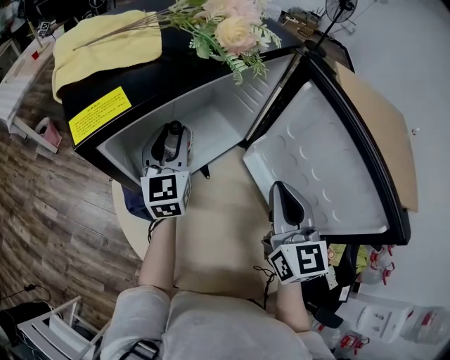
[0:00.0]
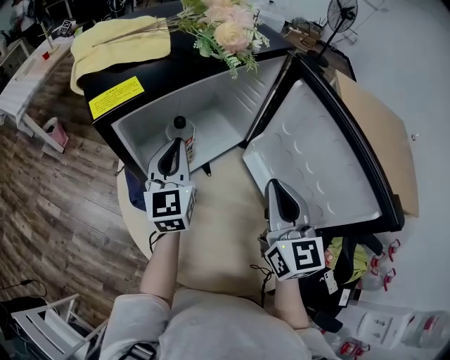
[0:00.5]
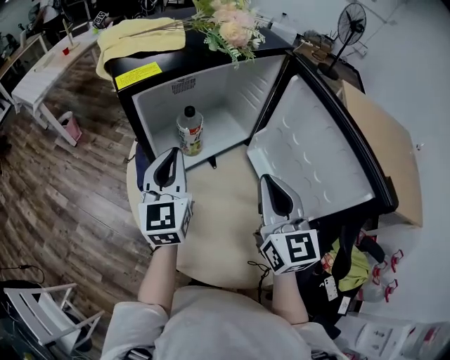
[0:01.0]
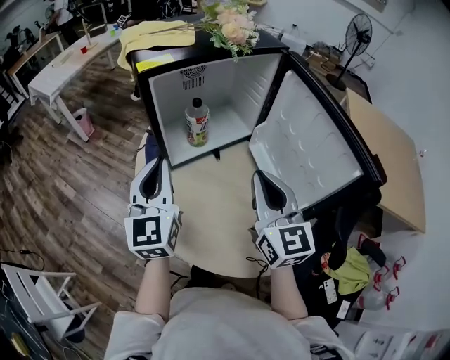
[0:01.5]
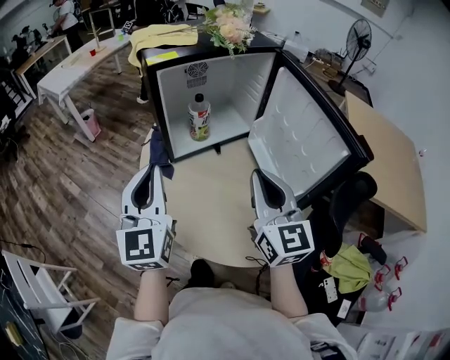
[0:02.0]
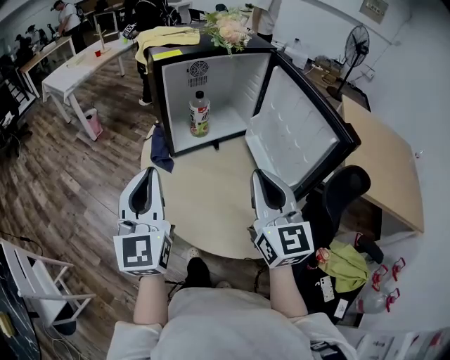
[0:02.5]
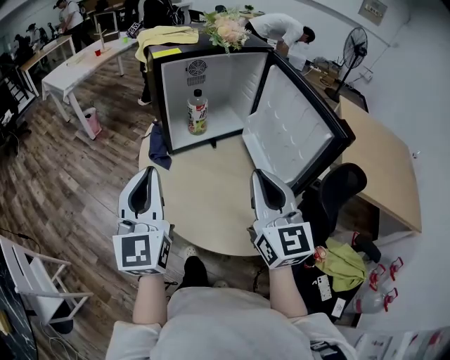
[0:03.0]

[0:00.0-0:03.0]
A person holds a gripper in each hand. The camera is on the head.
0:00.0 to 0:01.5: The right gripper shifts about 10 cm backward. Meanwhile the left gripper shifts about 25 cm backward, and closes its fingers.
0:01.5 to 0:03.0: The two grippers go approximately 15 cm backward.

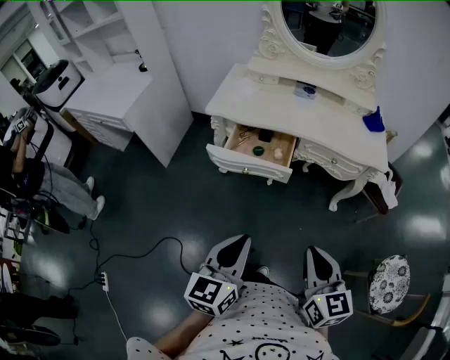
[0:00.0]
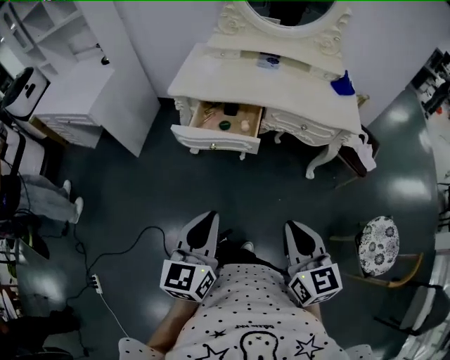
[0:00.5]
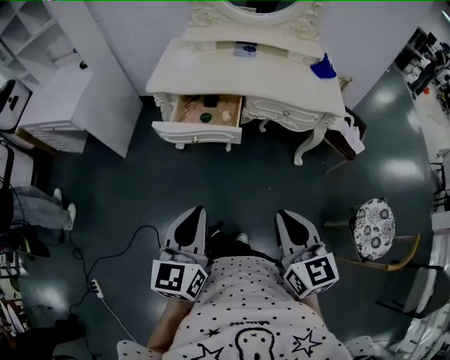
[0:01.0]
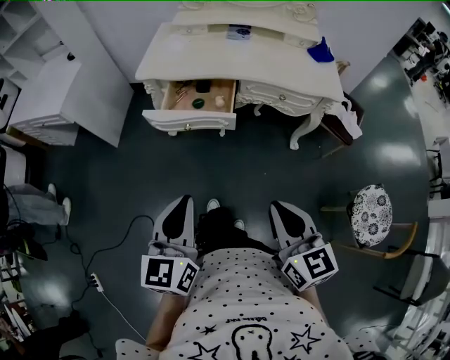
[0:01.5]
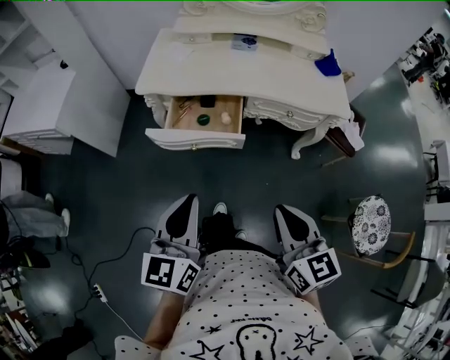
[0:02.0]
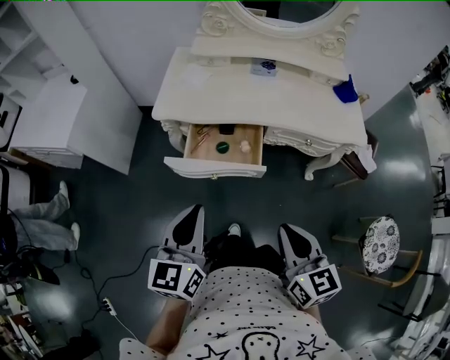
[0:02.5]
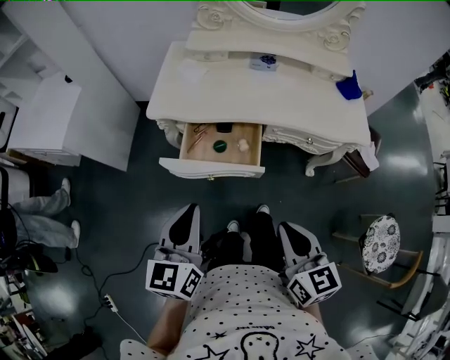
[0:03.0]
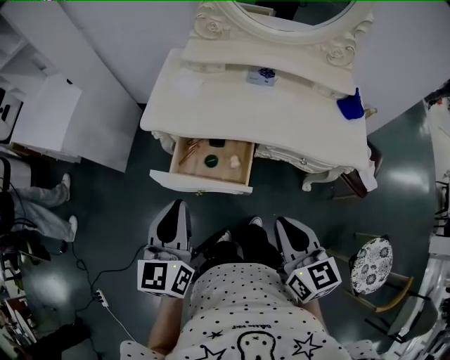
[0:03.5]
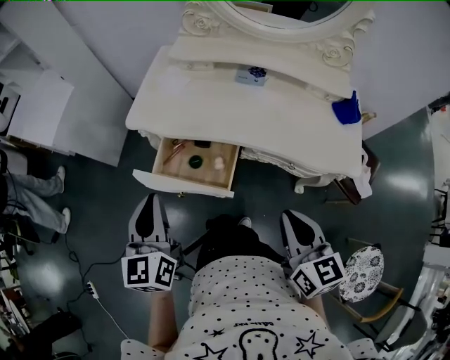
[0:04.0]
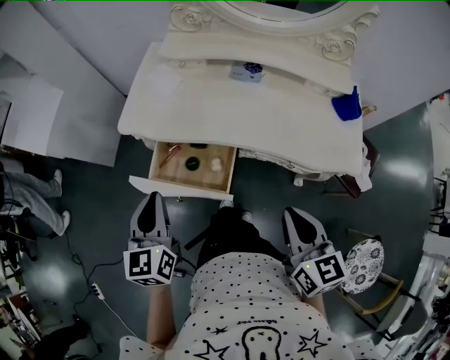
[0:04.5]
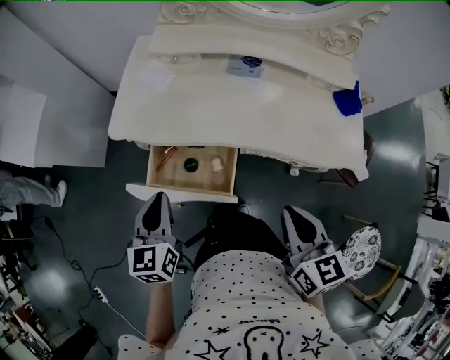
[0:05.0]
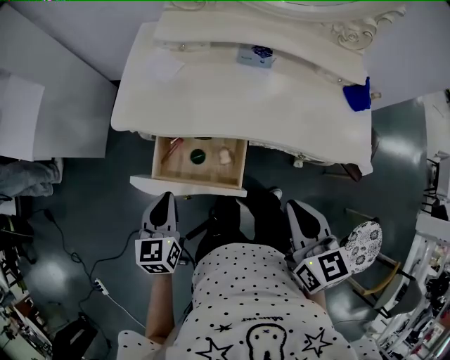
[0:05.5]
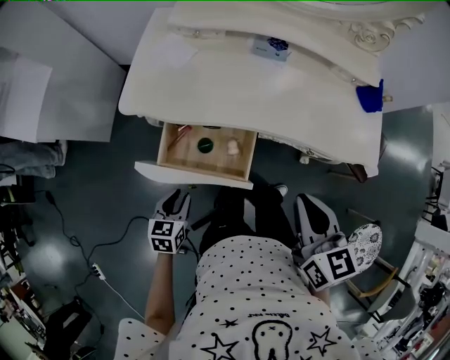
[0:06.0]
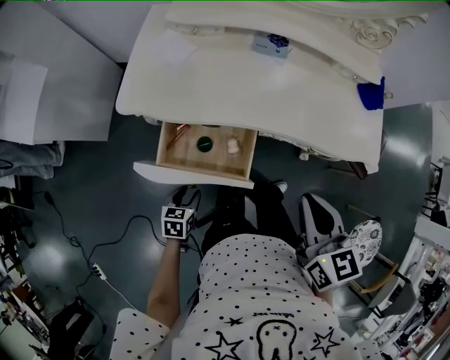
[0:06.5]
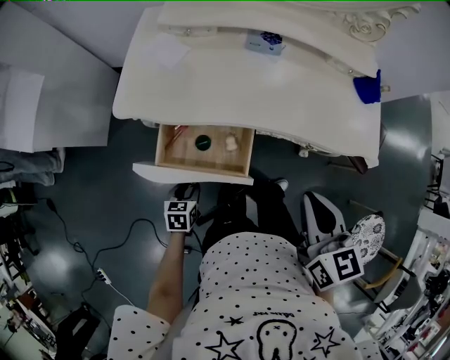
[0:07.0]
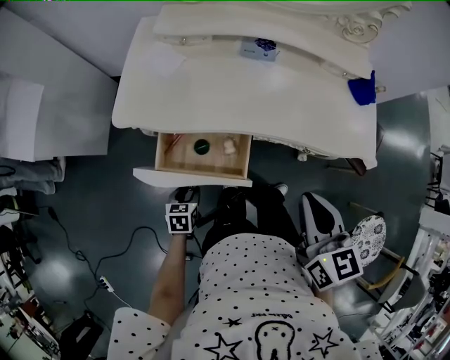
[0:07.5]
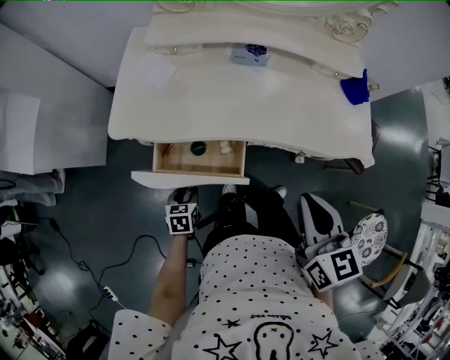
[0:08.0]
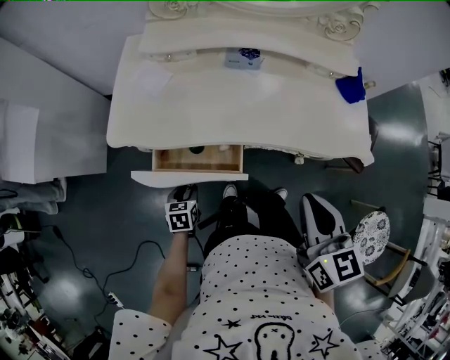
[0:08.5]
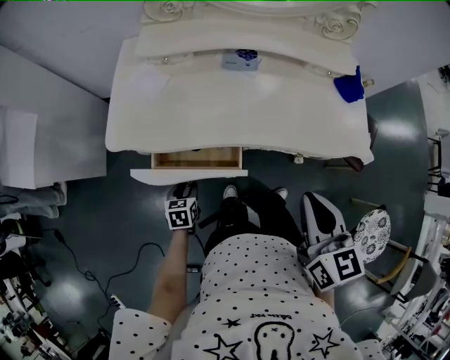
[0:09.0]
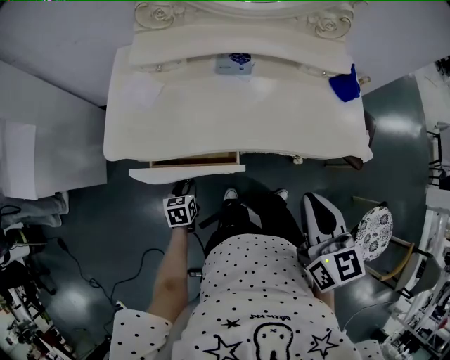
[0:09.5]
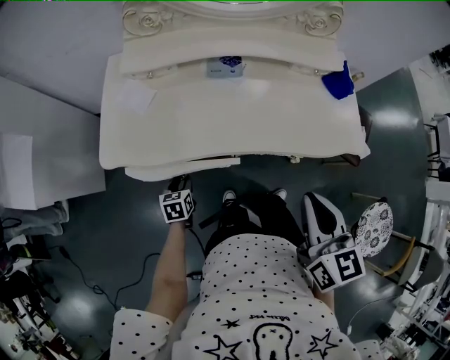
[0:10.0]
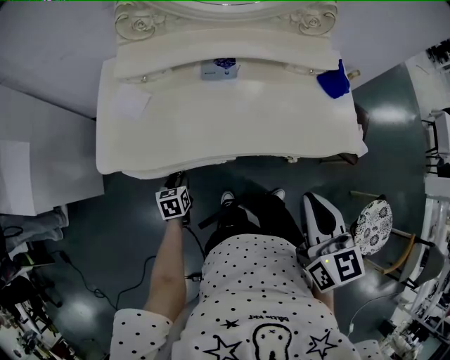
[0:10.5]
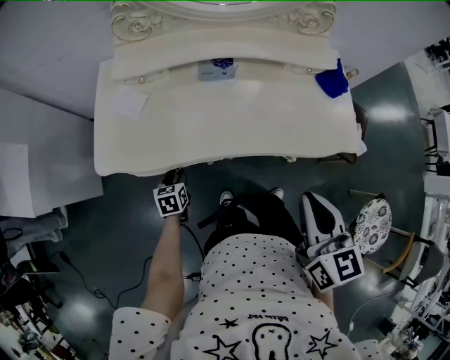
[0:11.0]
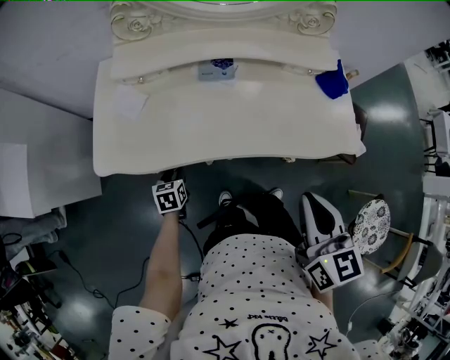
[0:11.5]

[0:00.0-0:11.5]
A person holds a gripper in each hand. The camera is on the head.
0:00.0 to 0:02.0: The left gripper travels forward by some 10 cm. The right gripper shifts roughly 5 cm forward.
0:02.0 to 0:04.0: The left gripper goes about 20 cm forward, and swivels some 20 degrees, while the right gripper goes some 25 cm forward and to the right.
0:04.0 to 0:06.0: The left gripper travels downward by about 25 cm, angles its fingers downward, by about 30 degrees, and opens its fingers, while the right gripper goes approximately 10 cm forward.
0:06.0 to 0:07.5: The left gripper goes approximately 10 cm downward.
0:07.5 to 0:09.5: The left gripper is displaced forward by roughly 10 cm.
0:09.5 to 0:11.5: The left gripper shifts approximately 10 cm forward.

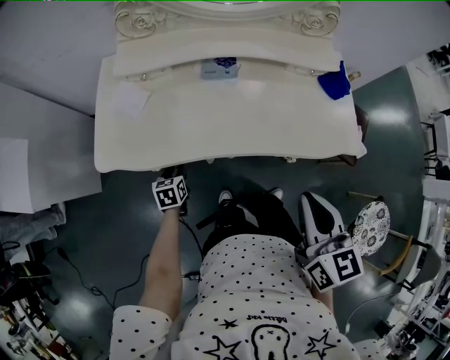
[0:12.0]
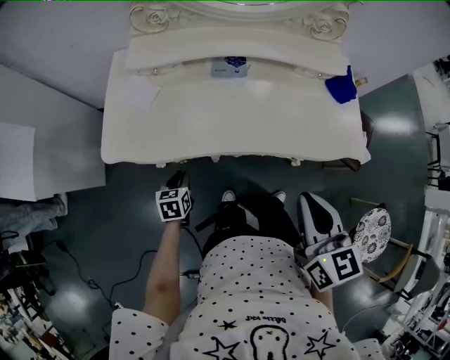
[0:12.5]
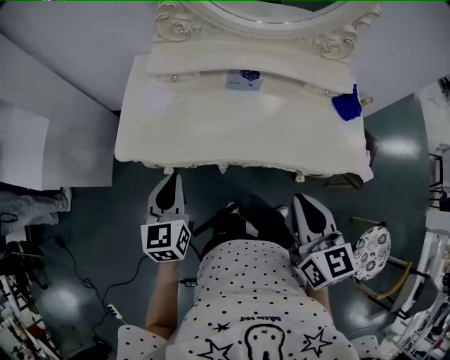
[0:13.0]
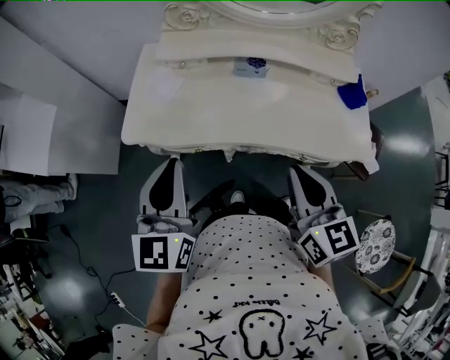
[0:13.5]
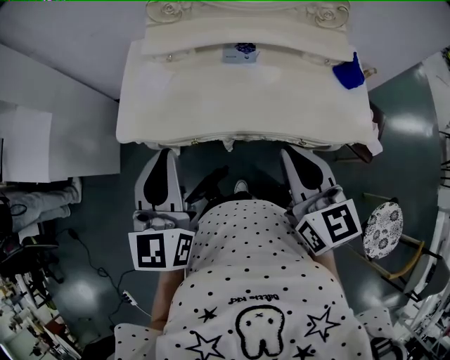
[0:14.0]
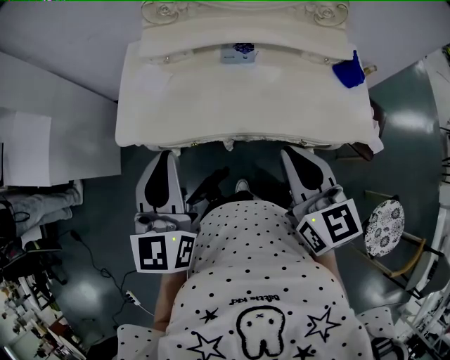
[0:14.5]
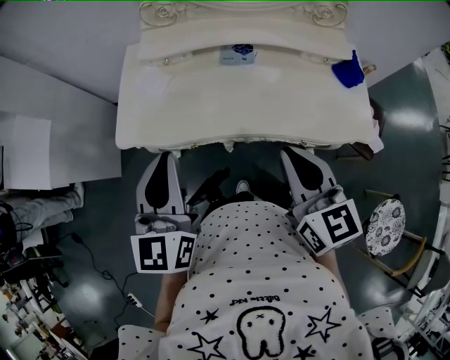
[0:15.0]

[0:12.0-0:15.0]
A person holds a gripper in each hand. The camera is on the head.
0:12.0 to 0:13.5: The left gripper heads upward, covering roughly 40 cm, tips its fingers upward by some 40 degrees, and closes up, while the right gripper moves to the left, about 5 cm.
0:13.5 to 0:15.0: The grippers move only a little.

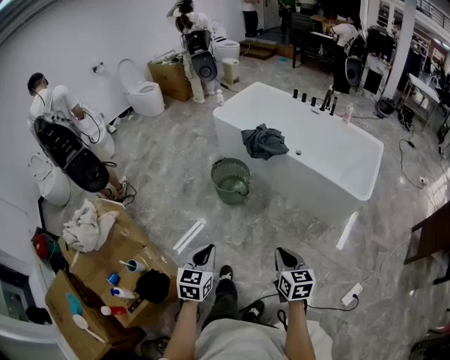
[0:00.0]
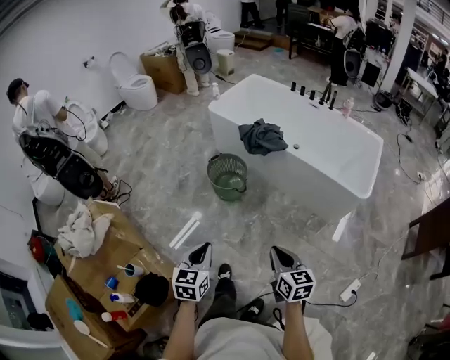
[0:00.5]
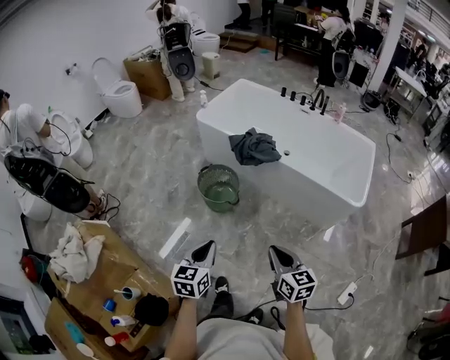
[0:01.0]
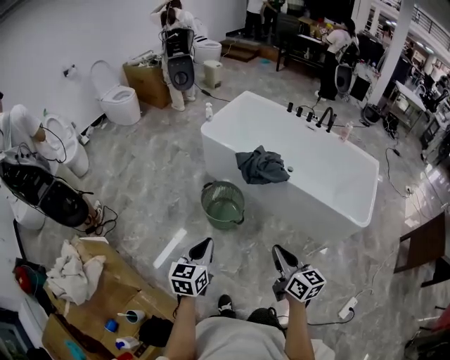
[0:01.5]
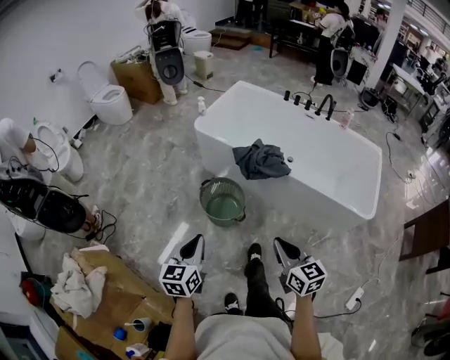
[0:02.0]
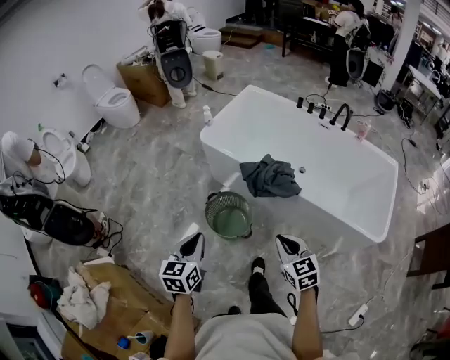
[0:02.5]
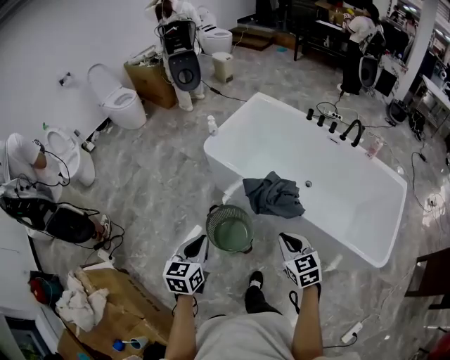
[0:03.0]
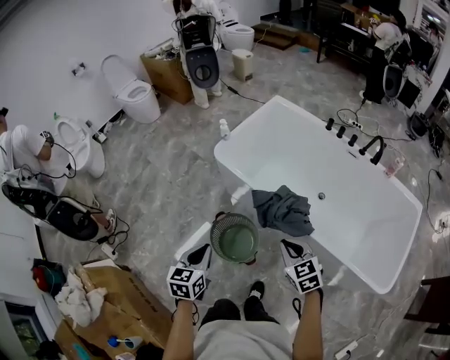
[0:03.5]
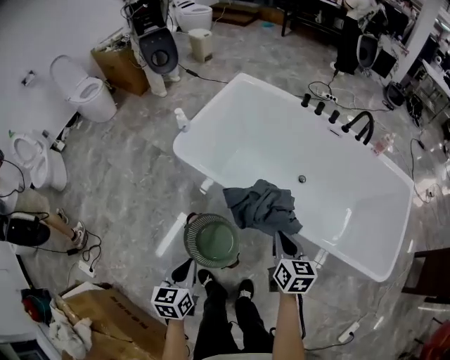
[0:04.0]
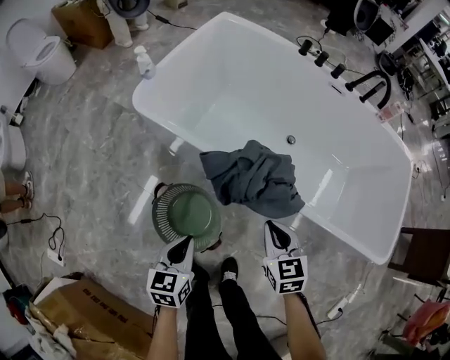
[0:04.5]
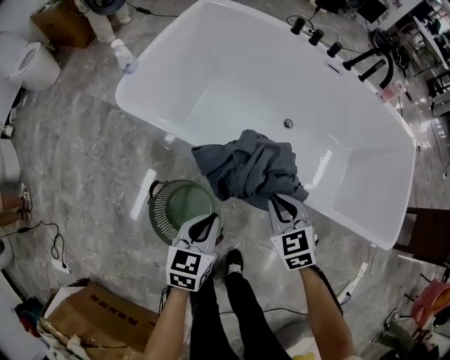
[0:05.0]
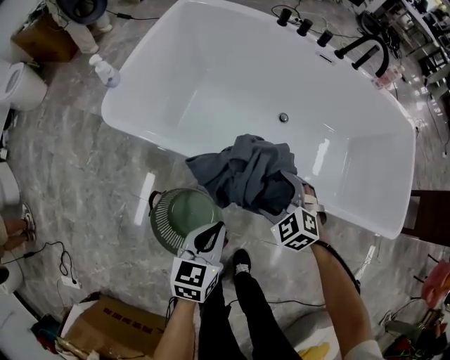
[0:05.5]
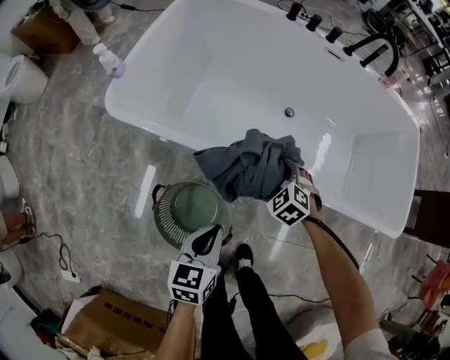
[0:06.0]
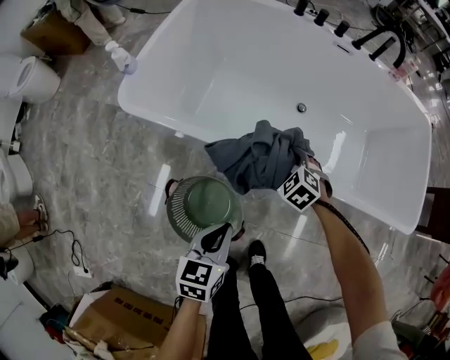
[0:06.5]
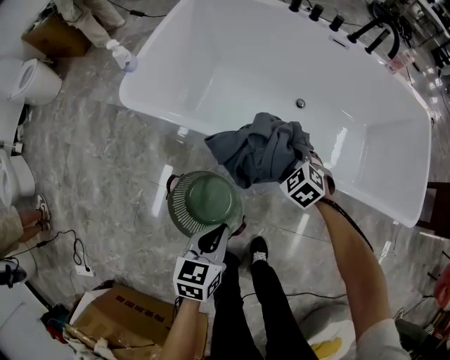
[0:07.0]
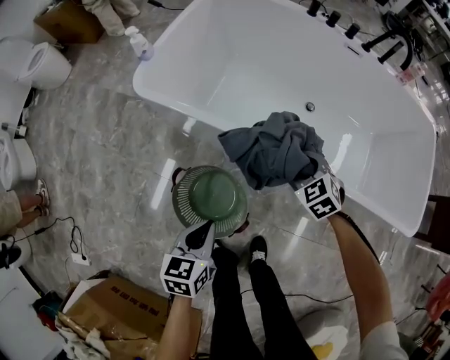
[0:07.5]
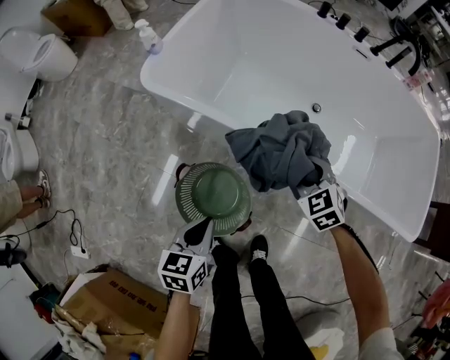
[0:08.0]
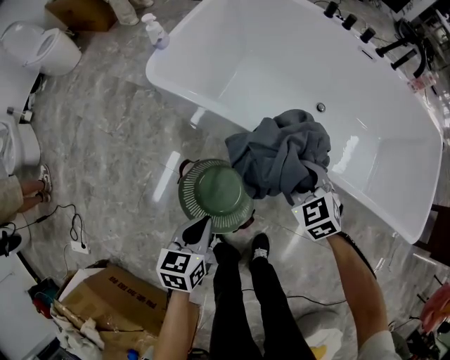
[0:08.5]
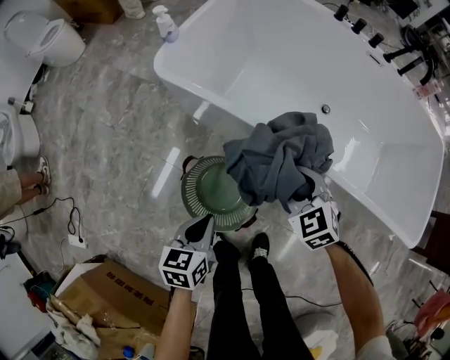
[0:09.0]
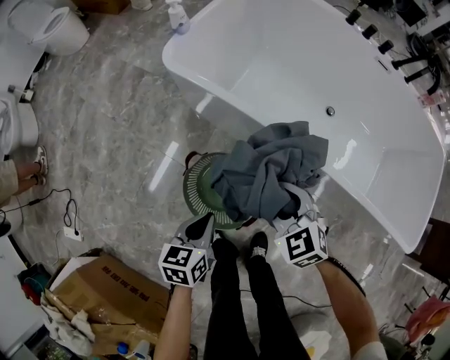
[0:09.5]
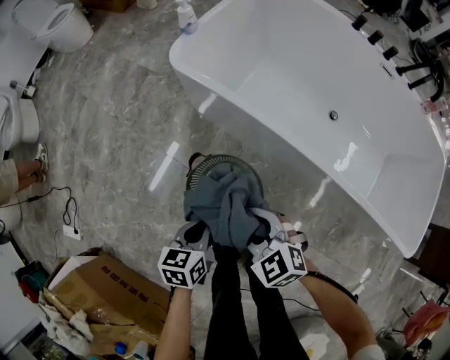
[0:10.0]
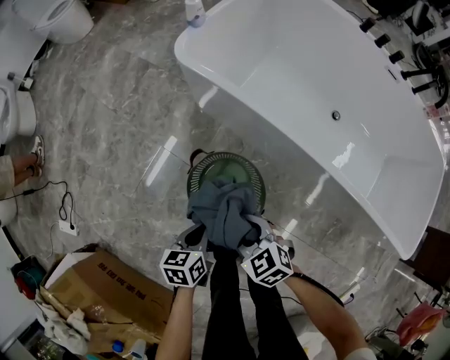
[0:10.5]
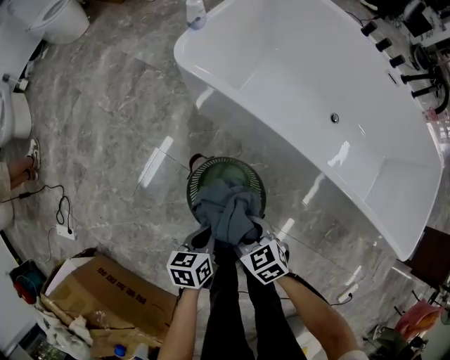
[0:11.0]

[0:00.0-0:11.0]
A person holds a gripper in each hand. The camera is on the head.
0:00.0 to 0:02.0: Both grippers travel together forward, roughly 30 cm.
0:02.0 to 0:03.5: Both grippers move forward, roughly 30 cm. The right gripper changes its angle by some 30 degrees.
0:03.5 to 0:05.5: The two grippers go some 30 cm downward. The right gripper turns by roughly 30 degrees, and opens; the left gripper turns by approximately 30 degrees.
0:05.5 to 0:07.5: The right gripper closes up; the left gripper heads to the left and backward, covering approximately 10 cm.
0:07.5 to 0:09.0: The right gripper shifts roughly 10 cm to the left, backward and upward, while the left gripper changes place by about 5 cm.
0:09.0 to 0:11.0: The right gripper moves to the left, downward and backward, about 25 cm, and turns by roughly 30 degrees. The left gripper goes some 10 cm downward.
